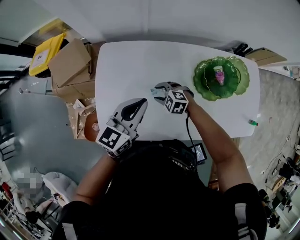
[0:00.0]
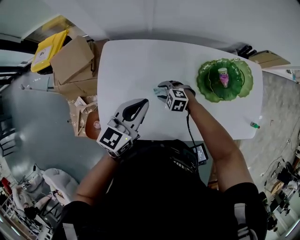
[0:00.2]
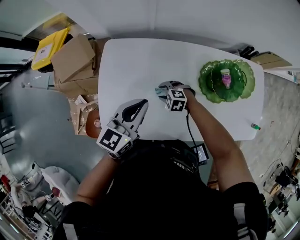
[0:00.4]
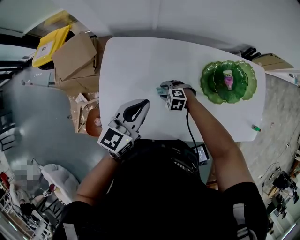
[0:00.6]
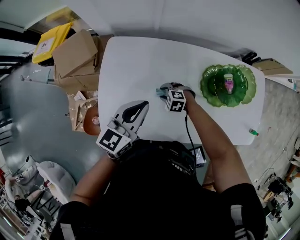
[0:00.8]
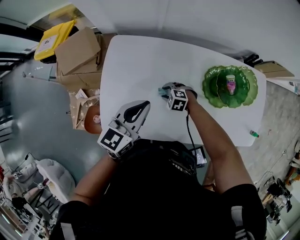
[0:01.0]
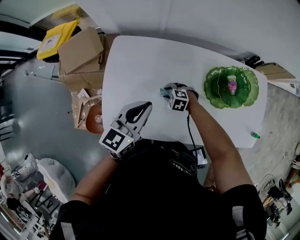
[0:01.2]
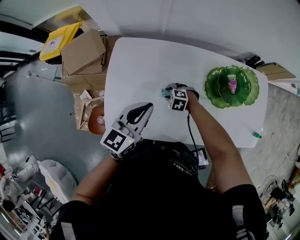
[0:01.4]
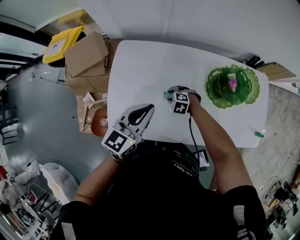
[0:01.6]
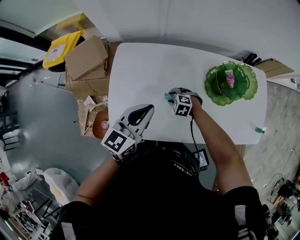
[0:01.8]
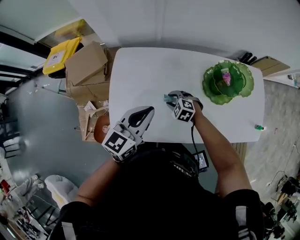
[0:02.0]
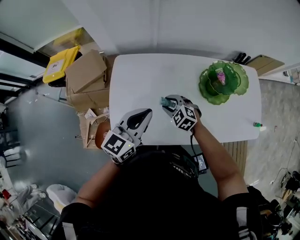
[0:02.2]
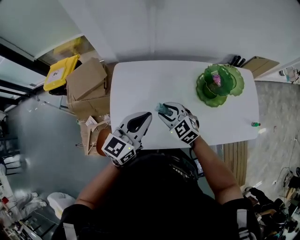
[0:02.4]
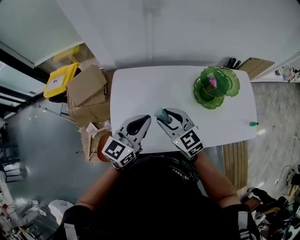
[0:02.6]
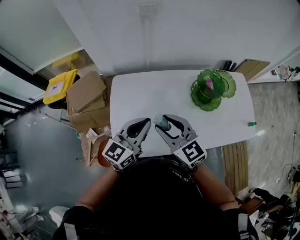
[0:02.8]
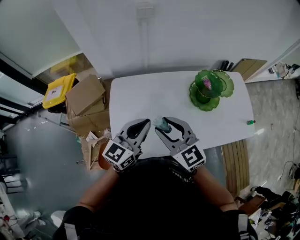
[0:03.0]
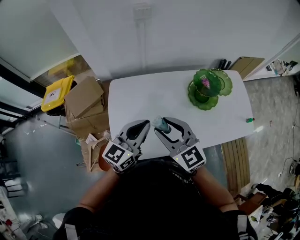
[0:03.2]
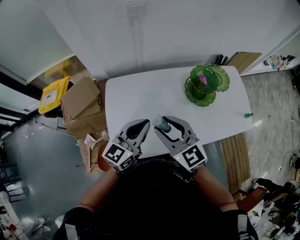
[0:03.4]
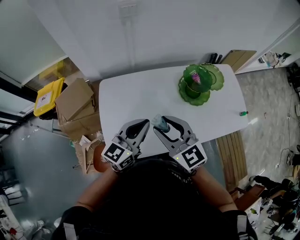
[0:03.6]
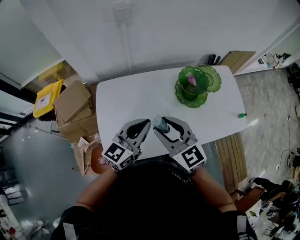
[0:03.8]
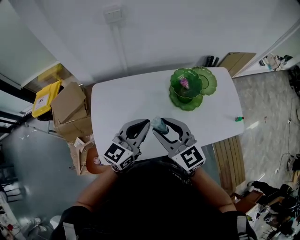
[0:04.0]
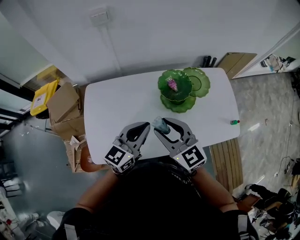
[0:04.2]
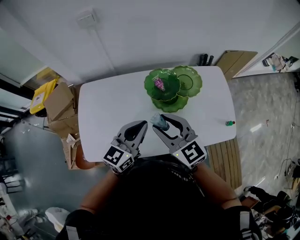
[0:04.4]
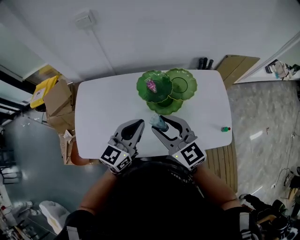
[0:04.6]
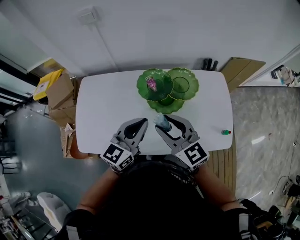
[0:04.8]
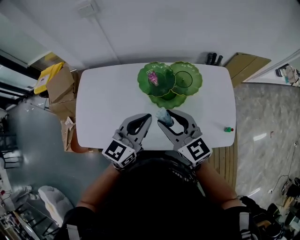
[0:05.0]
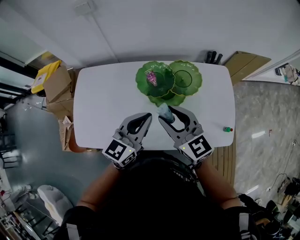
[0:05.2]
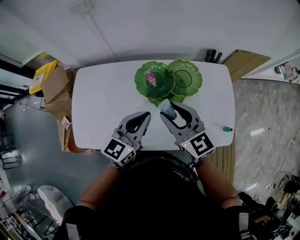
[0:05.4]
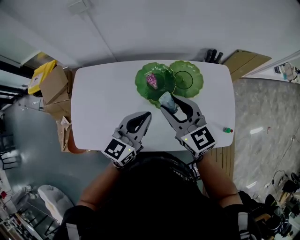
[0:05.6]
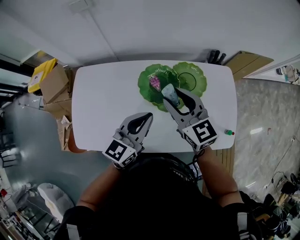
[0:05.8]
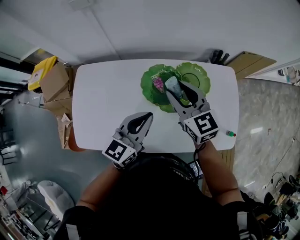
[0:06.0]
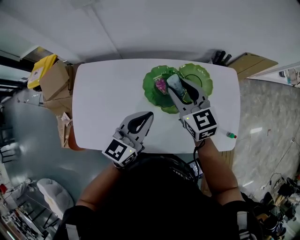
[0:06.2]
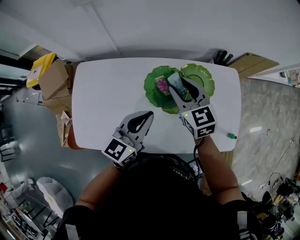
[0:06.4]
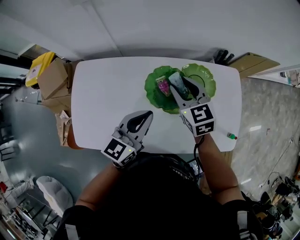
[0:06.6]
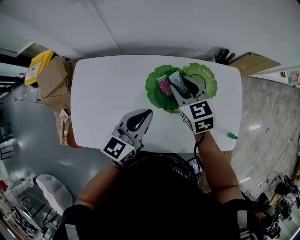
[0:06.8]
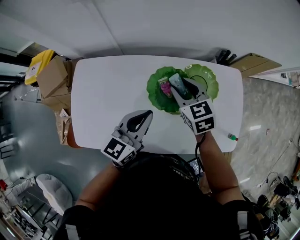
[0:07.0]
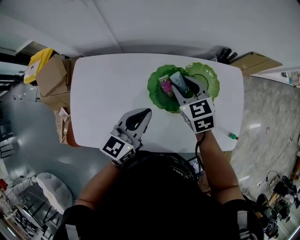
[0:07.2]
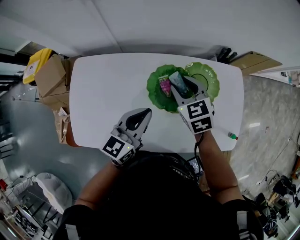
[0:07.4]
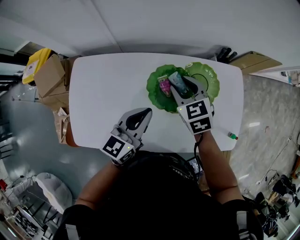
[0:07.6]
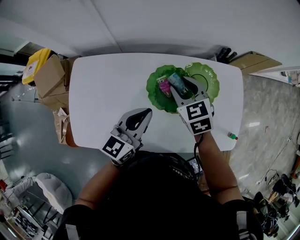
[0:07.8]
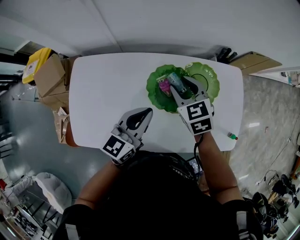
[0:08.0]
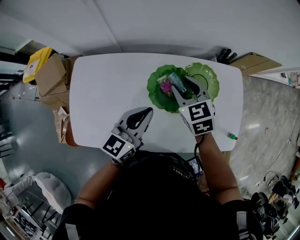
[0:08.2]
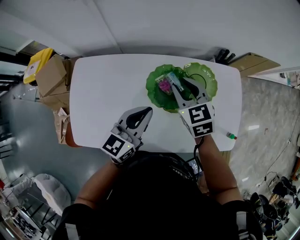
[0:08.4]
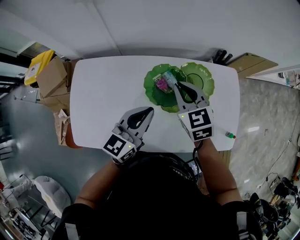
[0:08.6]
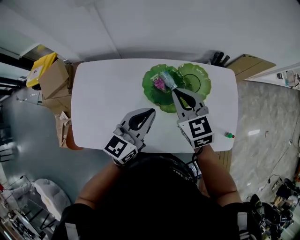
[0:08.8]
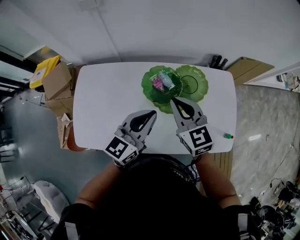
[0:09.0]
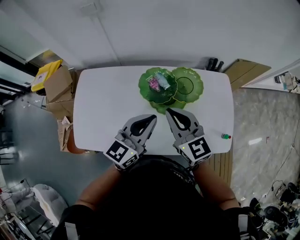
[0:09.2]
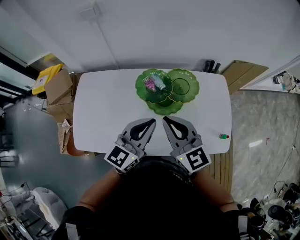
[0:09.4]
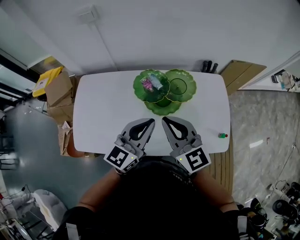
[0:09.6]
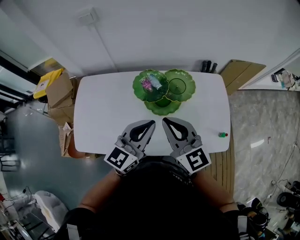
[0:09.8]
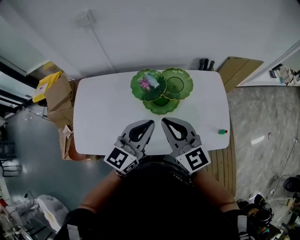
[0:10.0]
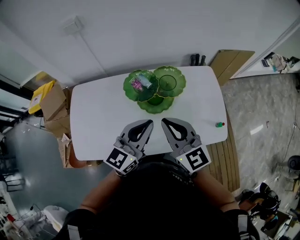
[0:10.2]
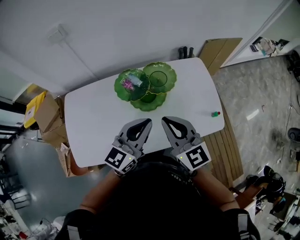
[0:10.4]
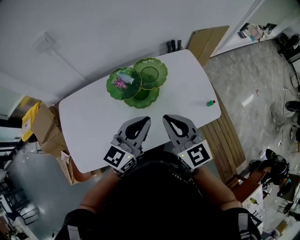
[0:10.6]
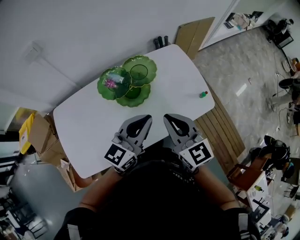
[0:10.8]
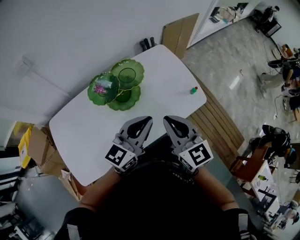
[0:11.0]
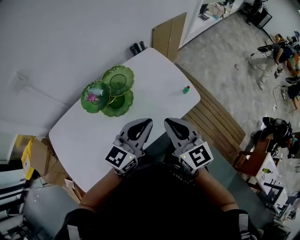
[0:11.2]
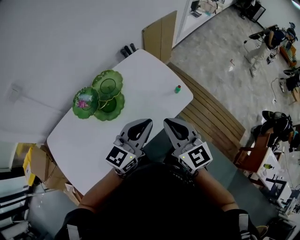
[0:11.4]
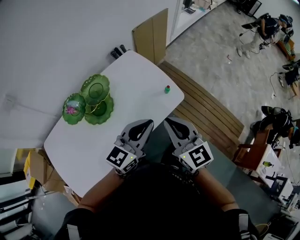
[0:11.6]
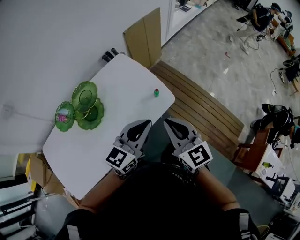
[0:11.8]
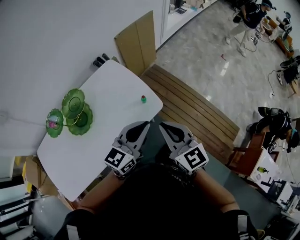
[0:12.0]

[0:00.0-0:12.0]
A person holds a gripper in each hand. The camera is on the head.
0:00.0 to 0:01.6: The right gripper goes approximately 5 cm downward.
0:01.6 to 0:03.0: The left gripper moves upward, approximately 10 cm; the right gripper goes about 40 cm upward, and tilts its fingers about 60 degrees upward.
0:03.0 to 0:04.4: The grippers both shift to the right by approximately 25 cm.
0:04.4 to 0:06.0: The left gripper is displaced forward and to the right by some 10 cm, while the right gripper heads forward and to the right, covering approximately 20 cm.
0:06.0 to 0:07.6: The left gripper ends up about 5 cm from where it was; the right gripper moves downward and forward, roughly 10 cm, and changes its angle by approximately 30 degrees.
0:07.6 to 0:09.0: The left gripper shifts some 5 cm upward, while the right gripper is displaced backward and upward by about 15 cm, rotates approximately 20 degrees, and closes its fingers.
0:09.0 to 0:10.4: The right gripper heads backward, to the right and upward, covering roughly 15 cm. Meanwhile the left gripper shifts roughly 10 cm backward and to the right.
0:10.4 to 0:12.0: Both grippers are carried some 40 cm. The left gripper swivels approximately 30 degrees. Meanwhile the right gripper changes its angle by approximately 30 degrees.

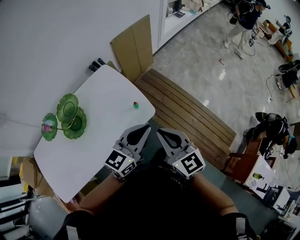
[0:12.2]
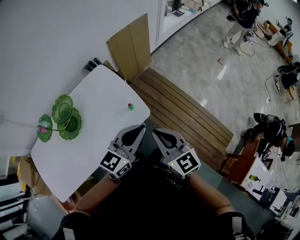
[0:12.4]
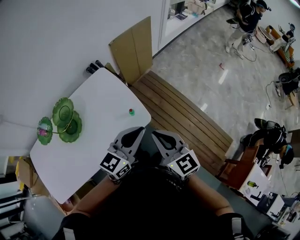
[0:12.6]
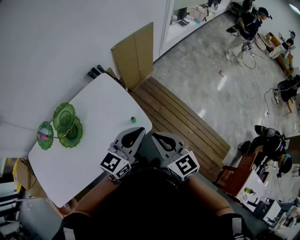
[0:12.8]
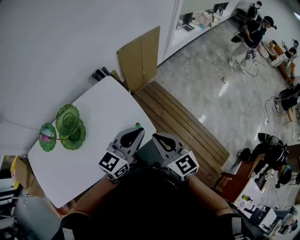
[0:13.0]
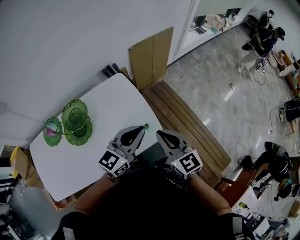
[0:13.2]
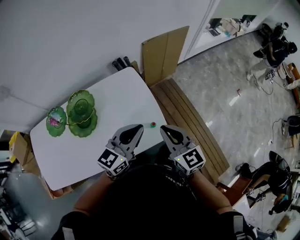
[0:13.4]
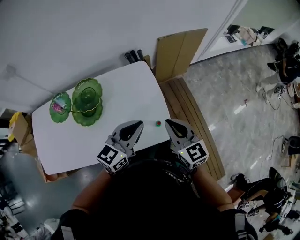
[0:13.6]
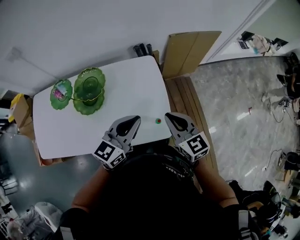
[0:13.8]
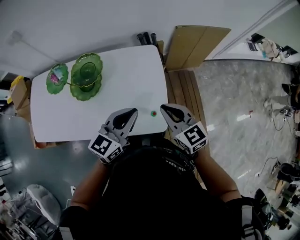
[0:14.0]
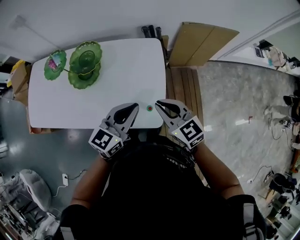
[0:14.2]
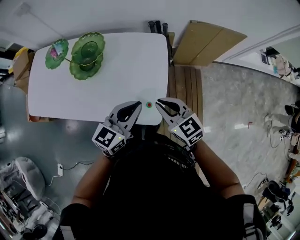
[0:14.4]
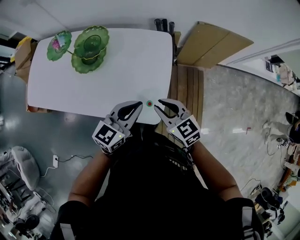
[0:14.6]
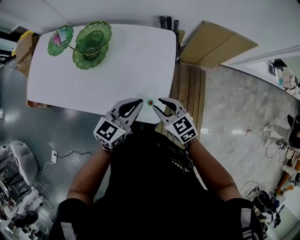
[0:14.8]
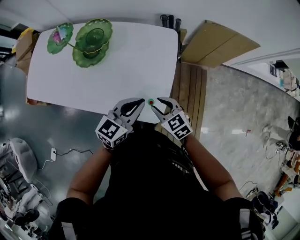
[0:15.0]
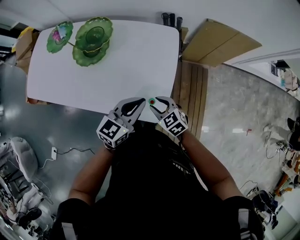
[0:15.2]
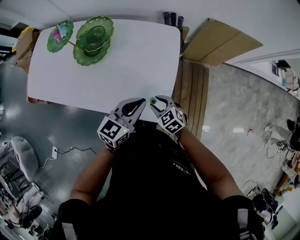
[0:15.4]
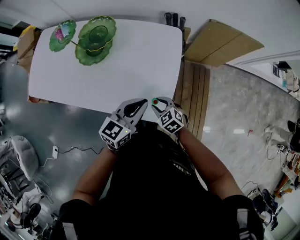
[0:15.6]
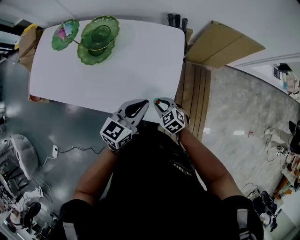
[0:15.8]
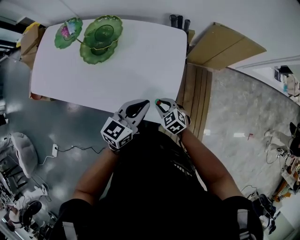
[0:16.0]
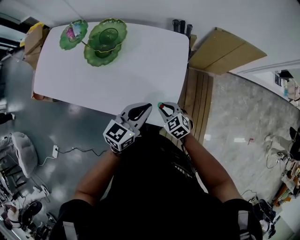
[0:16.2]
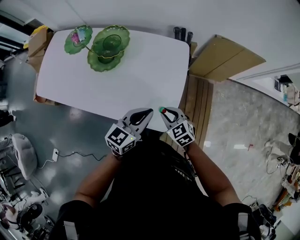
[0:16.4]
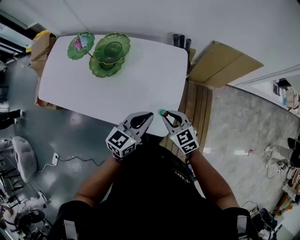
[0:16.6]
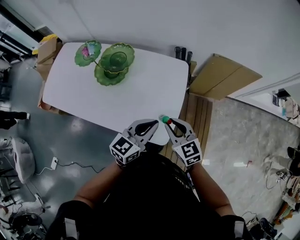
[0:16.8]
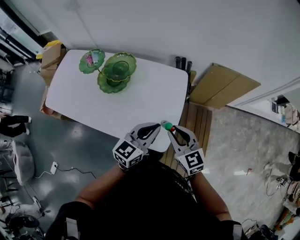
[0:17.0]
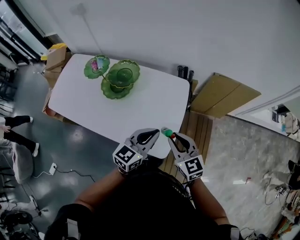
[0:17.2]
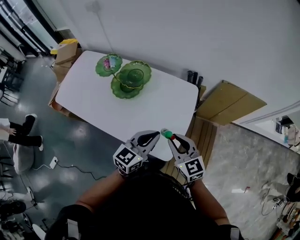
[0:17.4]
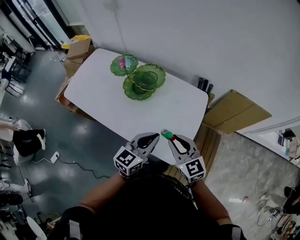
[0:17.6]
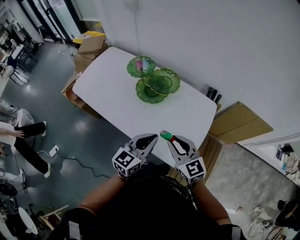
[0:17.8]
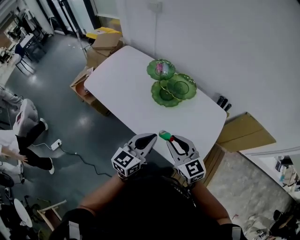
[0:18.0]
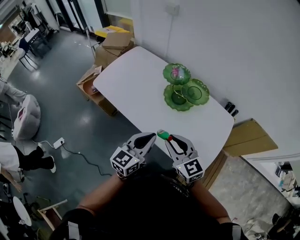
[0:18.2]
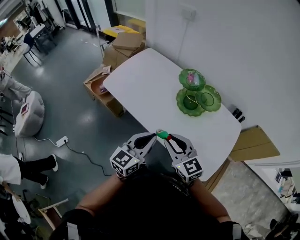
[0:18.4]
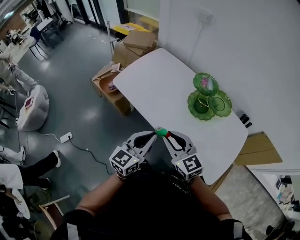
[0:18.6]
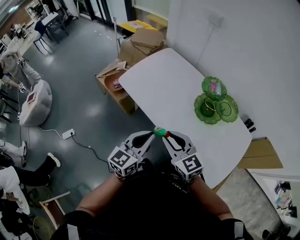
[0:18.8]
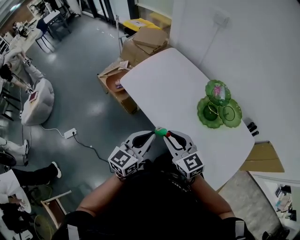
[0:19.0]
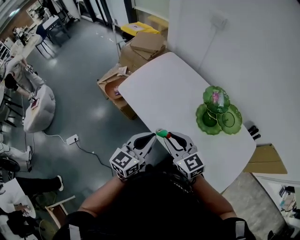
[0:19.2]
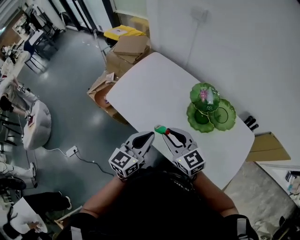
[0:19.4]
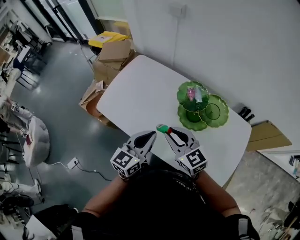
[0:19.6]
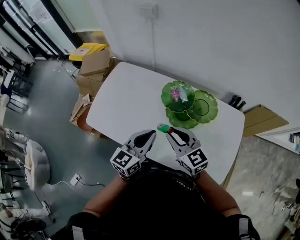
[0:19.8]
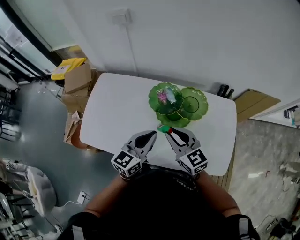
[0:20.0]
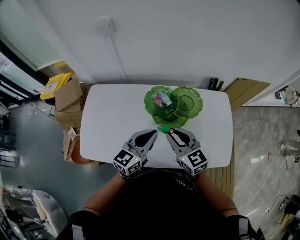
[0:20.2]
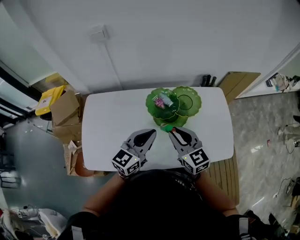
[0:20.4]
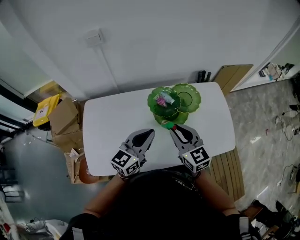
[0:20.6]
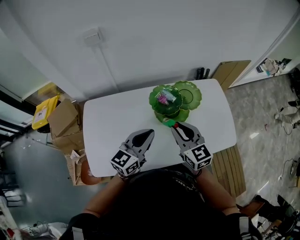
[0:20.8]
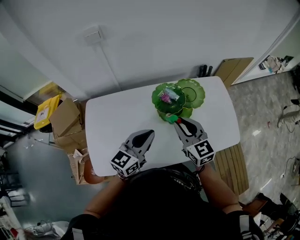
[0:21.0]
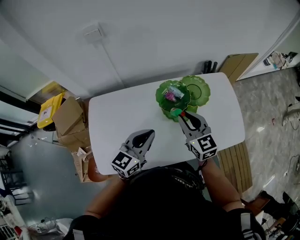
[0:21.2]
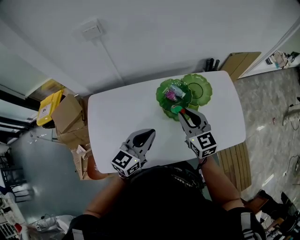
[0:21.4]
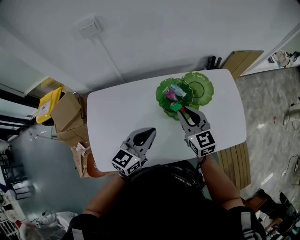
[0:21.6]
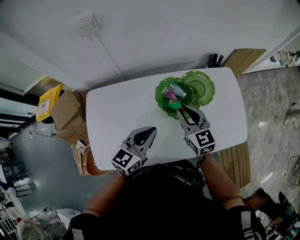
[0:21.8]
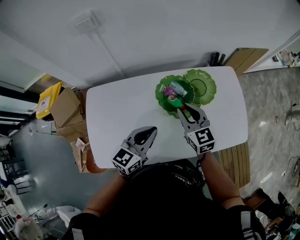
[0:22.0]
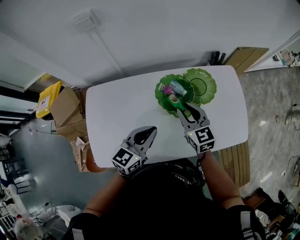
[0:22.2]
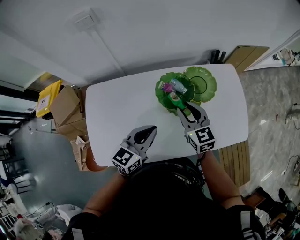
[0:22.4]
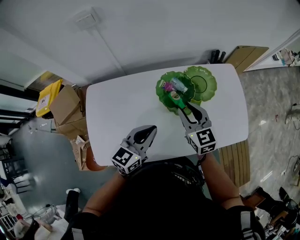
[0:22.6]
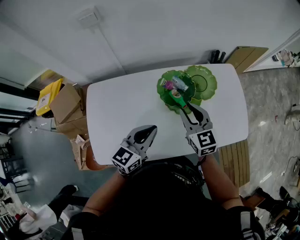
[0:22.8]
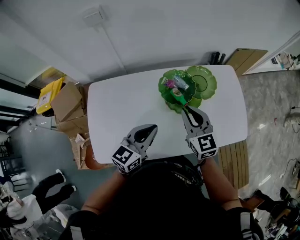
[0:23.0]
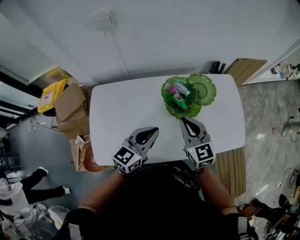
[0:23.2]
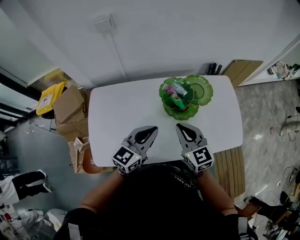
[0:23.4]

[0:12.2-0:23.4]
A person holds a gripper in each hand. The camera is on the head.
0:12.2 to 0:13.8: The right gripper changes place by some 25 cm, and swivels some 30 degrees. The left gripper moves approximately 20 cm, and changes its angle by about 30 degrees.
0:13.8 to 0:15.4: The right gripper shifts roughly 25 cm downward, turns by about 50 degrees, and opens, while the left gripper moves downward, approximately 15 cm, and turns by approximately 20 degrees.
0:15.4 to 0:17.0: The left gripper travels upward by some 10 cm. The right gripper goes roughly 20 cm upward, and changes its angle by roughly 30 degrees.
0:17.0 to 0:18.6: The two grippers travel together, some 50 cm. The left gripper turns by roughly 30 degrees, while the right gripper changes its angle by approximately 30 degrees.
0:18.6 to 0:20.2: The right gripper ends up roughly 25 cm from where it was, and rotates roughly 40 degrees. The left gripper ends up approximately 30 cm from where it was, and turns by approximately 40 degrees.
0:20.2 to 0:21.8: The left gripper moves to the left, roughly 10 cm. The right gripper travels forward by some 10 cm, and turns by some 20 degrees.
0:21.8 to 0:23.4: The right gripper goes about 10 cm backward, while the left gripper shifts by some 5 cm.
